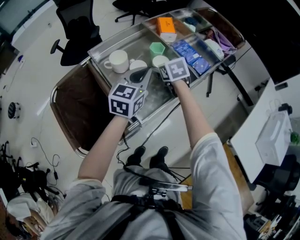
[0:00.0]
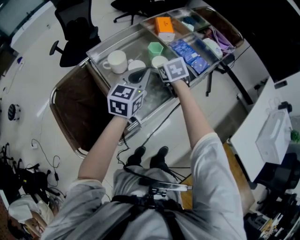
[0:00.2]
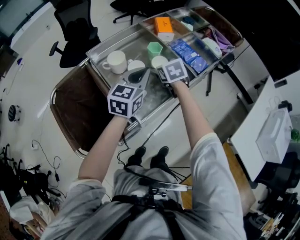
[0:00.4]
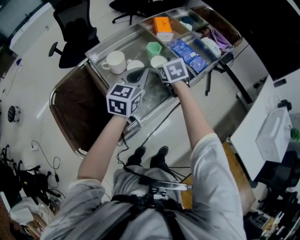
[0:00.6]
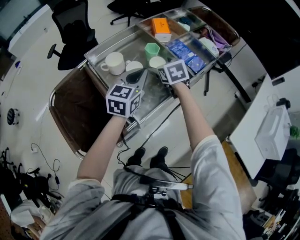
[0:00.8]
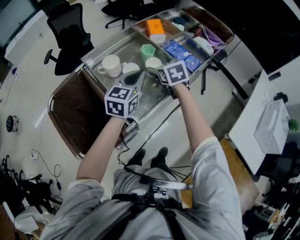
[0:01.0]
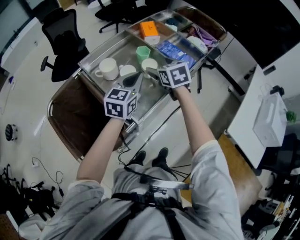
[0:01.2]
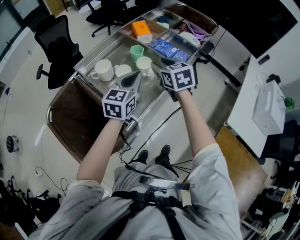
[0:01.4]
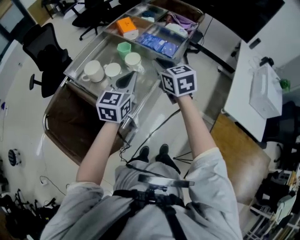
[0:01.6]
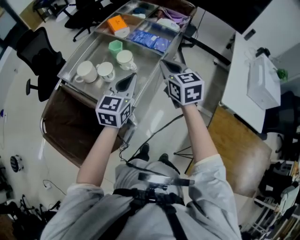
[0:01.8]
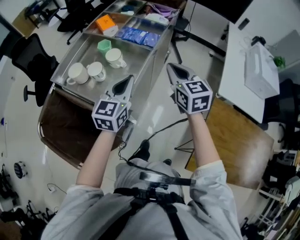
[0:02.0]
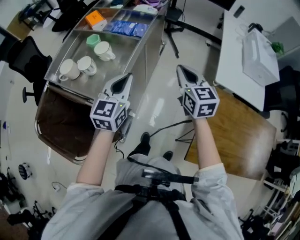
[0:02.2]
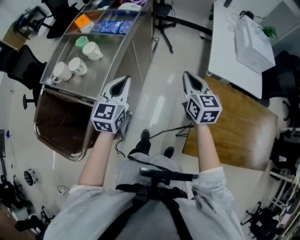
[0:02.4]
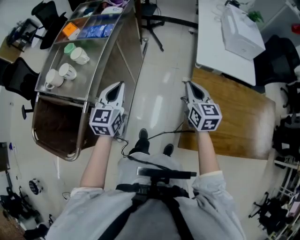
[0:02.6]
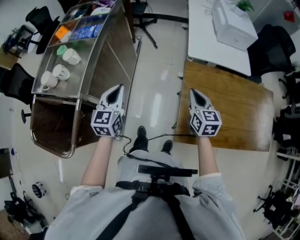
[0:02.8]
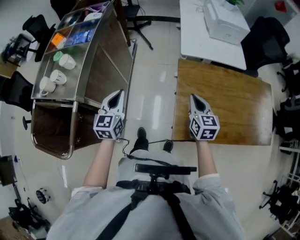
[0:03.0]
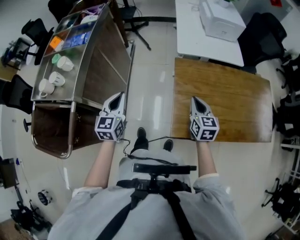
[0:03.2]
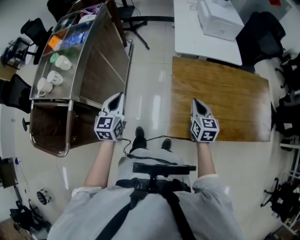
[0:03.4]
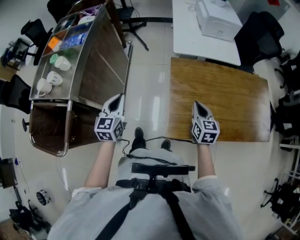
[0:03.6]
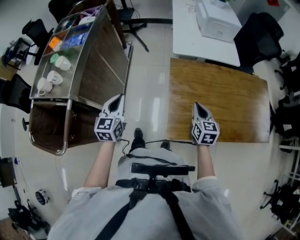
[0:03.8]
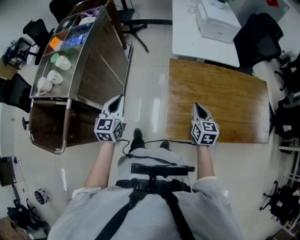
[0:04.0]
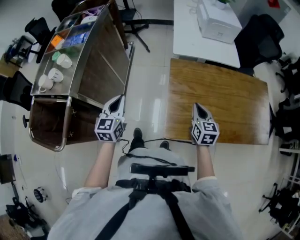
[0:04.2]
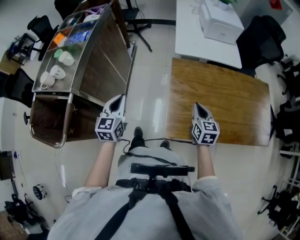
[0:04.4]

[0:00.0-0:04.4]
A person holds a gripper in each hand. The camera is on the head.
0:00.0 to 0:01.4: The right gripper moves upward, backward and to the right, roughly 10 cm, and closes.
0:01.4 to 0:03.0: The left gripper moves some 35 cm, and swivels approximately 20 degrees. The right gripper changes place by roughly 70 cm, turns by about 50 degrees, and closes up.
0:03.0 to 0:04.4: Both grippers move to the right, roughly 10 cm.

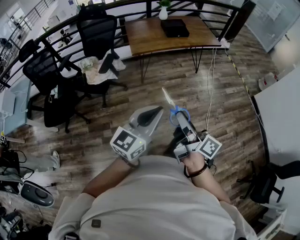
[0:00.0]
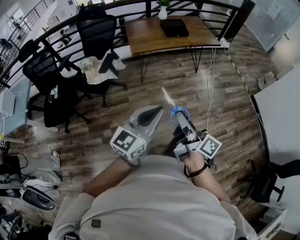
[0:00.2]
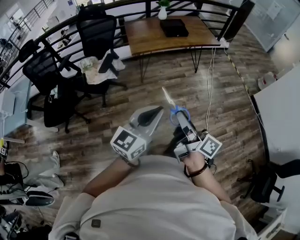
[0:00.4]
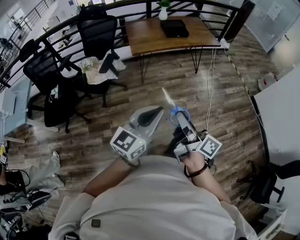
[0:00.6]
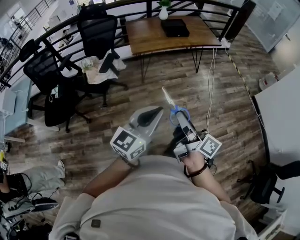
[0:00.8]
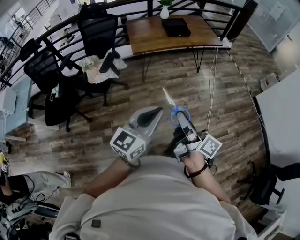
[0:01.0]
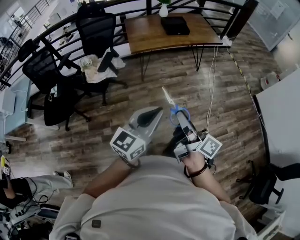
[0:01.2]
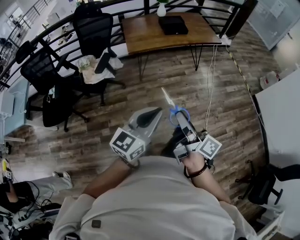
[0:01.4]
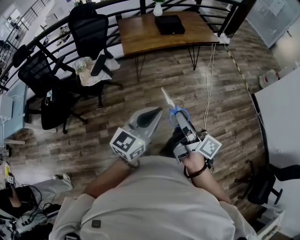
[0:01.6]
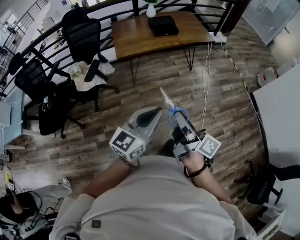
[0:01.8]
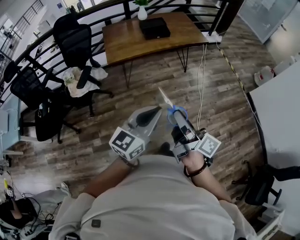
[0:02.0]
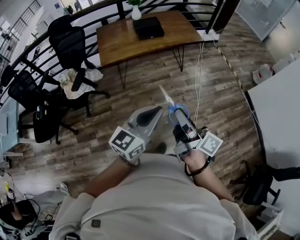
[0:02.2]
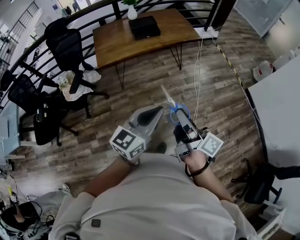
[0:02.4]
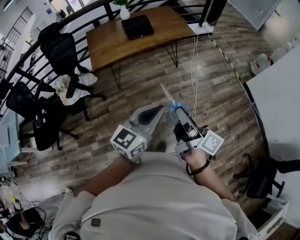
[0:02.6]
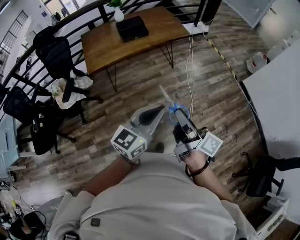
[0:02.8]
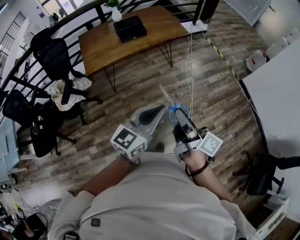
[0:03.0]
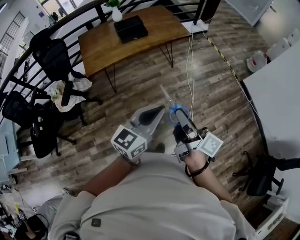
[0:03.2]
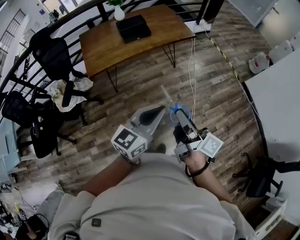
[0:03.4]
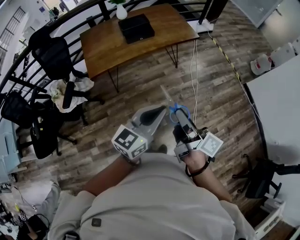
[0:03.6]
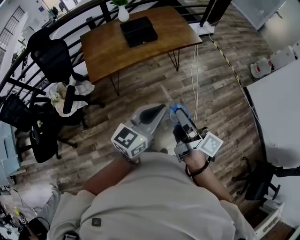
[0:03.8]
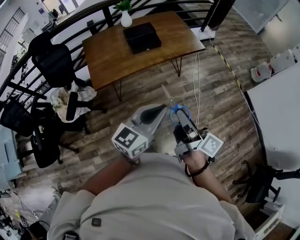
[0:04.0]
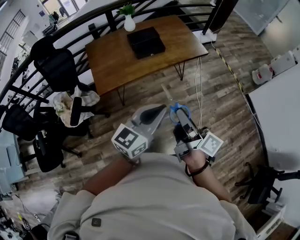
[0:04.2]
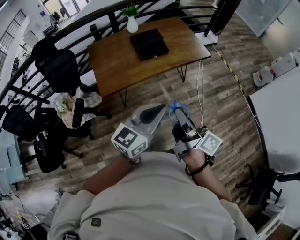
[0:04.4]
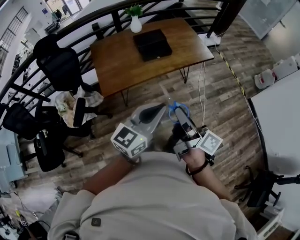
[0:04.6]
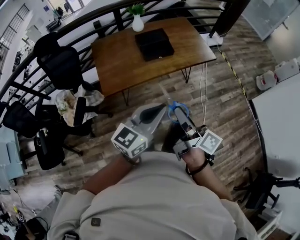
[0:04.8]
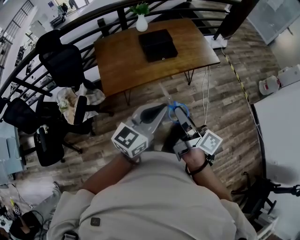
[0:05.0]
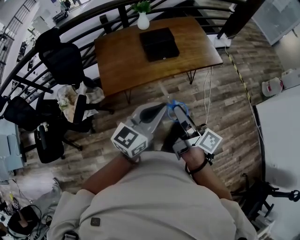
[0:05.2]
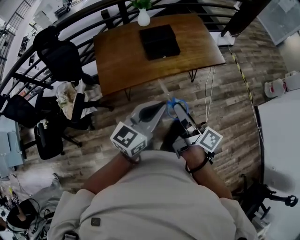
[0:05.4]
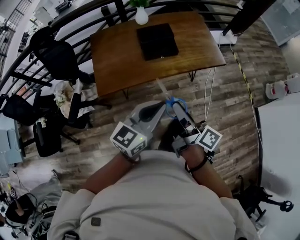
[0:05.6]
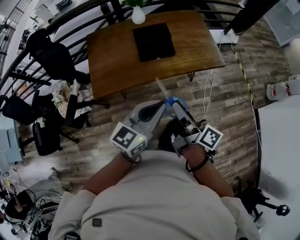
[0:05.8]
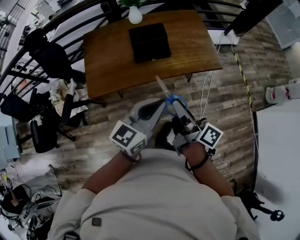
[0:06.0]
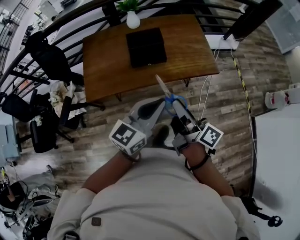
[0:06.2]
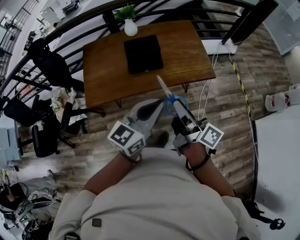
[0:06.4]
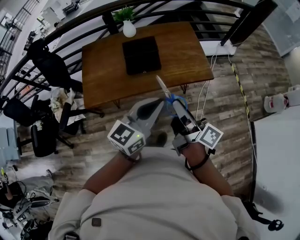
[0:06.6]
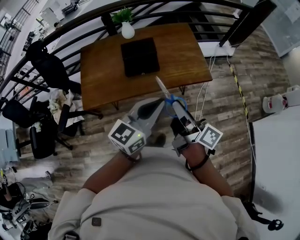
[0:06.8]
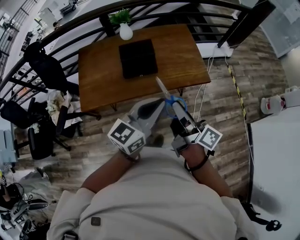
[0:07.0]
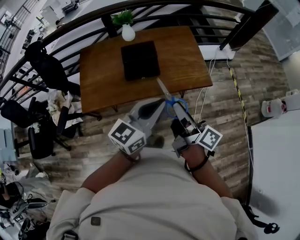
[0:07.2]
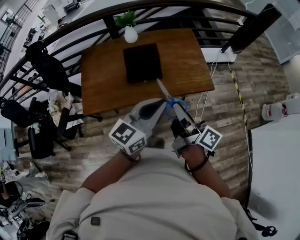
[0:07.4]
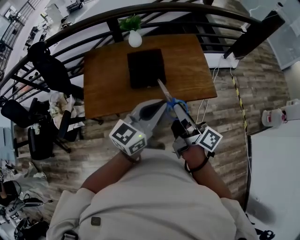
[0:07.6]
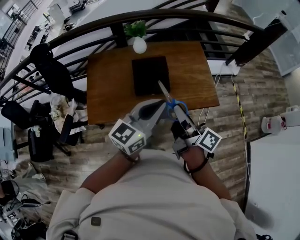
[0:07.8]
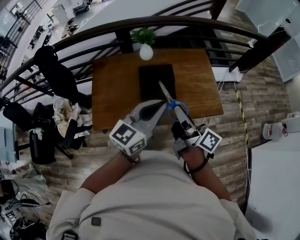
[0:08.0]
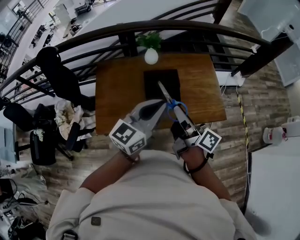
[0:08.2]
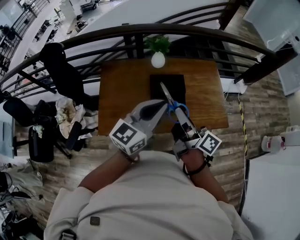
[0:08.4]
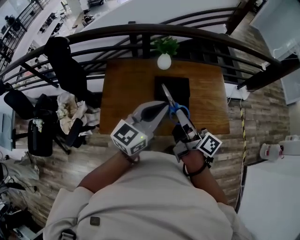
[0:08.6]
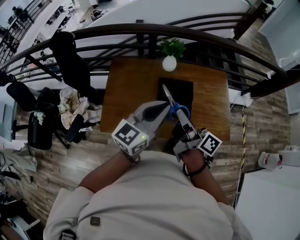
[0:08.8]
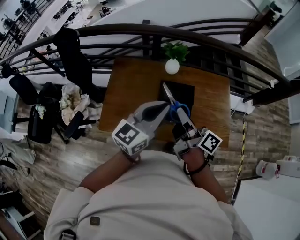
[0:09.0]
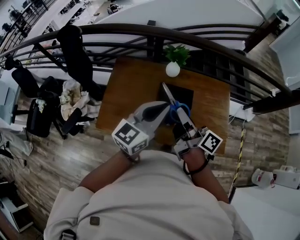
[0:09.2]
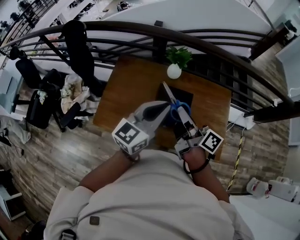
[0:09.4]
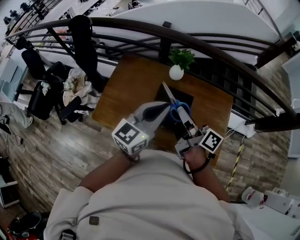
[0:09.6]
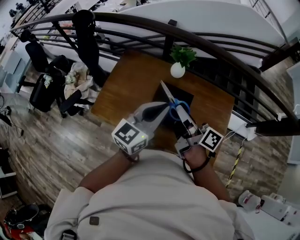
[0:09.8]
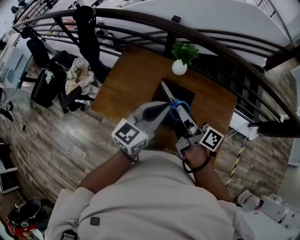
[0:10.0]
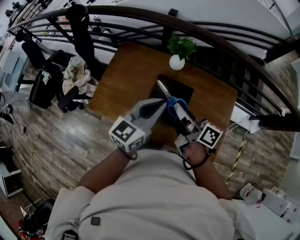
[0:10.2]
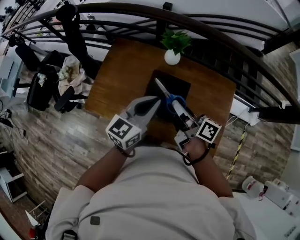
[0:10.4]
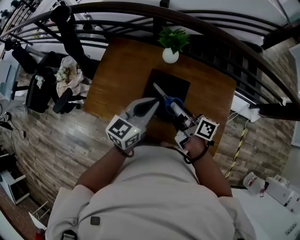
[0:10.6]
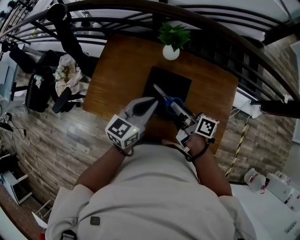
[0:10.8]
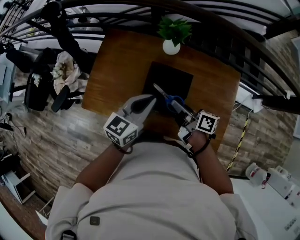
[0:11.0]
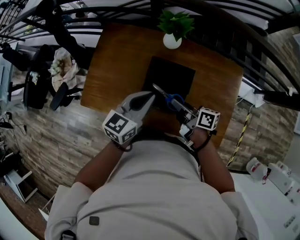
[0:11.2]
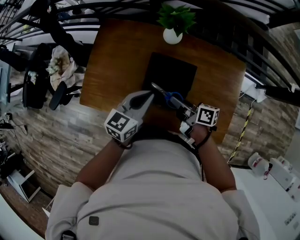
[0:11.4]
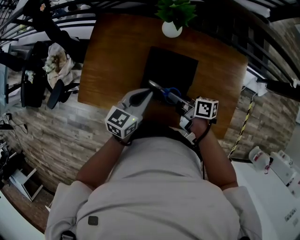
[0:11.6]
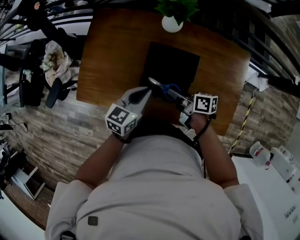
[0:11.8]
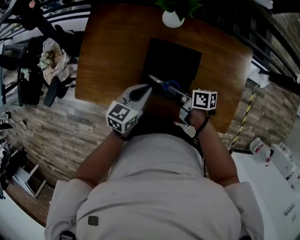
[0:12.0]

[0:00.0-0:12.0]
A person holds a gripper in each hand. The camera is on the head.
0:00.0 to 0:01.6: The left gripper goes roughly 10 cm to the right and forward. Meanwhile the right gripper is displaced forward and to the right by approximately 10 cm.
0:01.6 to 0:03.0: Both grippers move to the right and forward, roughly 30 cm.
0:03.0 to 0:04.4: Both grippers move to the left and forward, approximately 30 cm.
0:04.4 to 0:06.0: The two grippers go approximately 25 cm forward.
0:06.0 to 0:07.6: The two grippers go some 15 cm forward.
0:07.6 to 0:09.0: The grippers both shift forward and to the left by some 25 cm.
0:09.0 to 0:10.4: Both grippers move to the right, downward and forward, approximately 15 cm. The right gripper turns by approximately 20 degrees.
0:10.4 to 0:12.0: Both grippers travel together downward, approximately 25 cm. The right gripper changes its angle by roughly 30 degrees, while the left gripper turns by approximately 20 degrees.

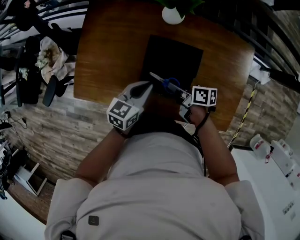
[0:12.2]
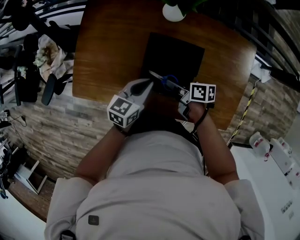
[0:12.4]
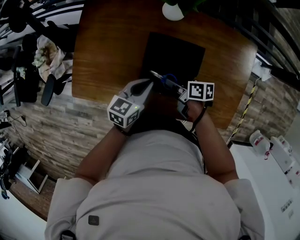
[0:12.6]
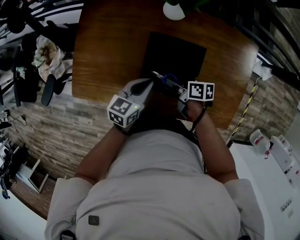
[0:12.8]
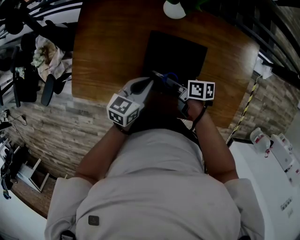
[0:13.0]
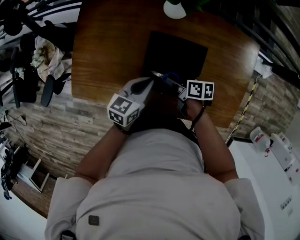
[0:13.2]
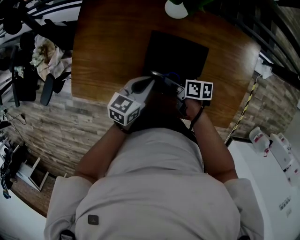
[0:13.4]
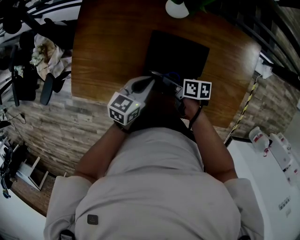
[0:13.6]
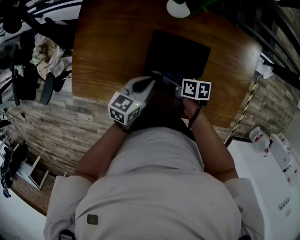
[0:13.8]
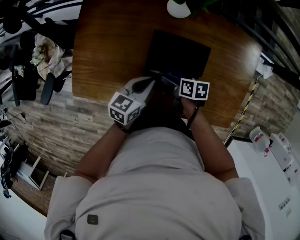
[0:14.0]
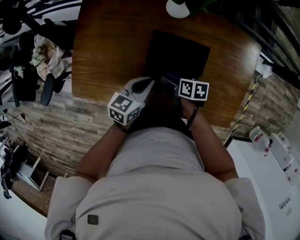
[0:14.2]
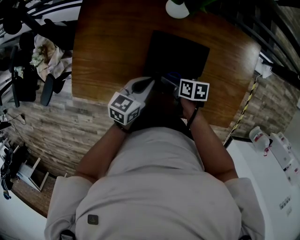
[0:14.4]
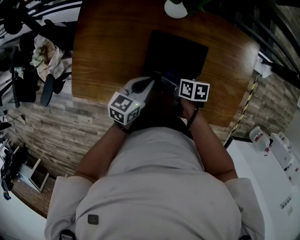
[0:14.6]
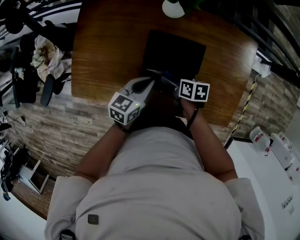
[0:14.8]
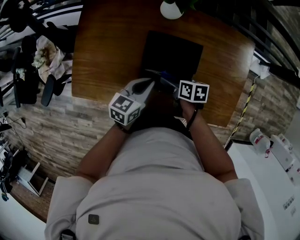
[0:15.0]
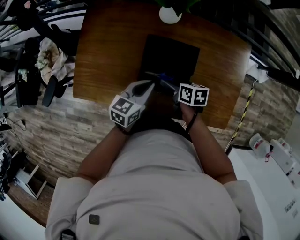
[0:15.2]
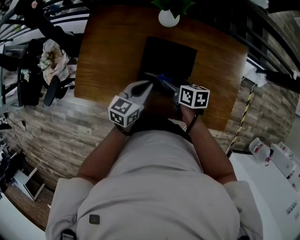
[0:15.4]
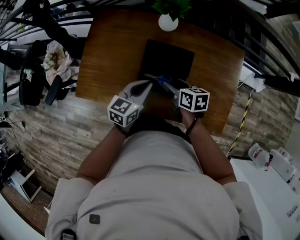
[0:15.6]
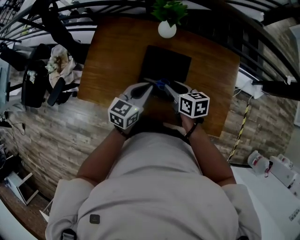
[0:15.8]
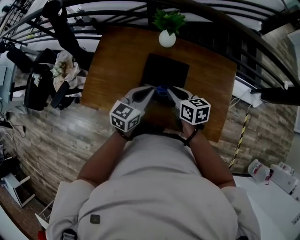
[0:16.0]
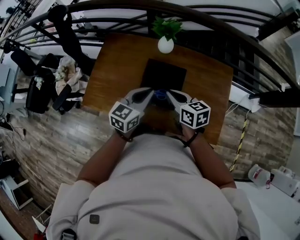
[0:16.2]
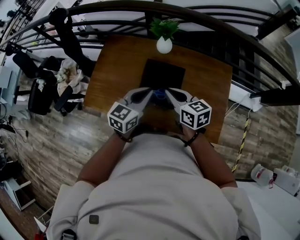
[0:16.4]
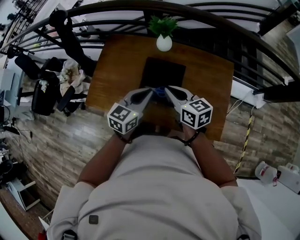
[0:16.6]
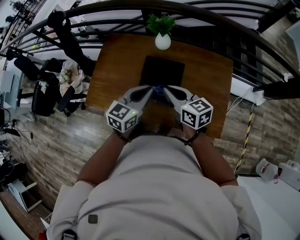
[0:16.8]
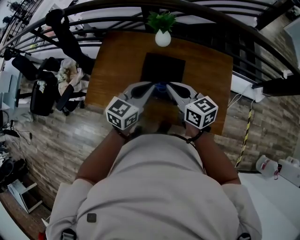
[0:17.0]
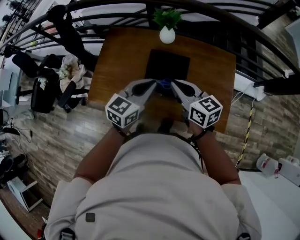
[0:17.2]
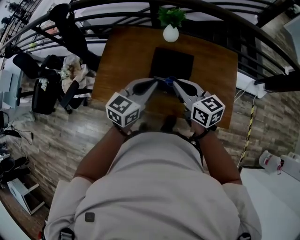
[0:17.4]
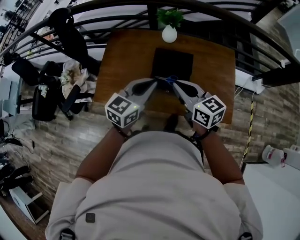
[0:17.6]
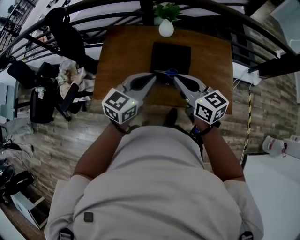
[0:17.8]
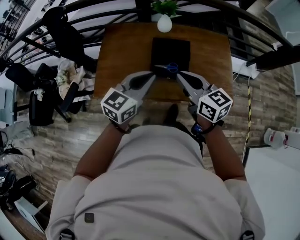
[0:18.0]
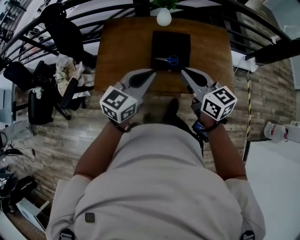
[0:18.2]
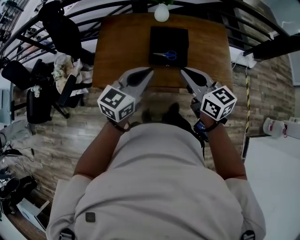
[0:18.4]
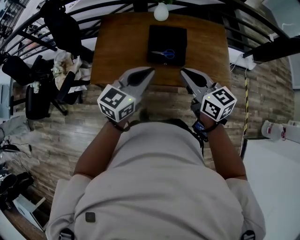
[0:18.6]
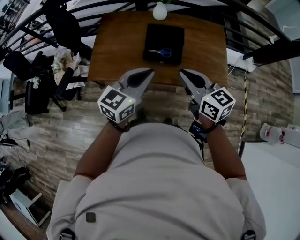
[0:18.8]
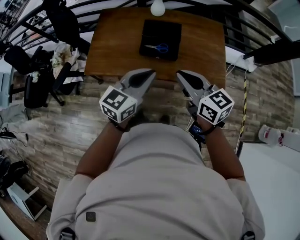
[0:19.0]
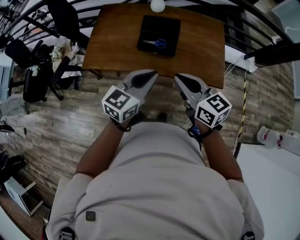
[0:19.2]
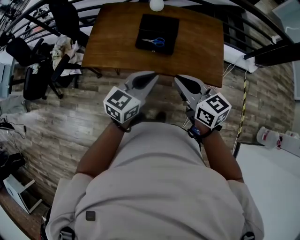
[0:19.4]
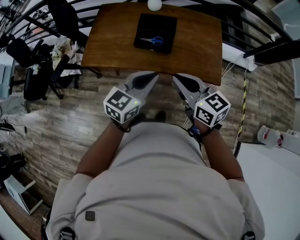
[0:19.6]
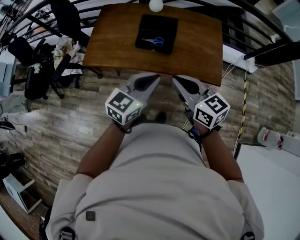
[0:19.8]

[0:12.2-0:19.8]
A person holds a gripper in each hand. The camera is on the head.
0:12.2 to 0:13.8: The right gripper moves downward, some 5 cm, and opens its fingers.
0:13.8 to 0:15.2: The left gripper shifts by approximately 5 cm, while the right gripper travels upward by approximately 5 cm.
0:15.2 to 0:16.8: The two grippers go about 20 cm upward. The right gripper swivels some 40 degrees, and closes its fingers.
0:16.8 to 0:18.2: The two grippers go some 20 cm backward, to the left and upward.
0:18.2 to 0:19.8: The left gripper goes about 25 cm to the right and backward. Meanwhile the right gripper heads backward and to the right, covering approximately 20 cm.
